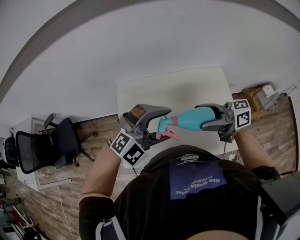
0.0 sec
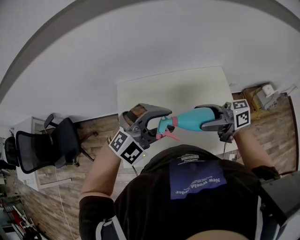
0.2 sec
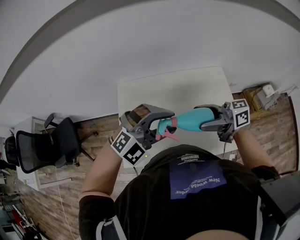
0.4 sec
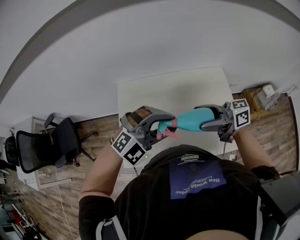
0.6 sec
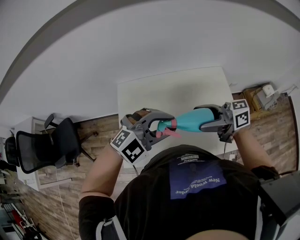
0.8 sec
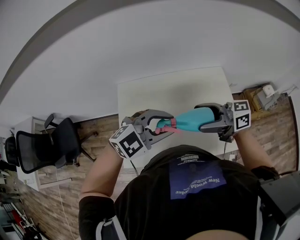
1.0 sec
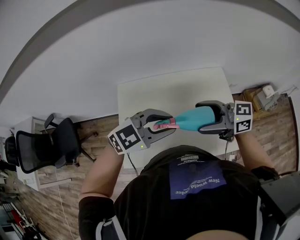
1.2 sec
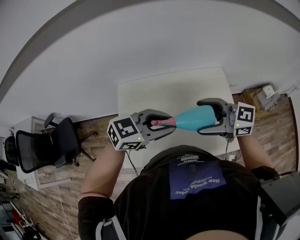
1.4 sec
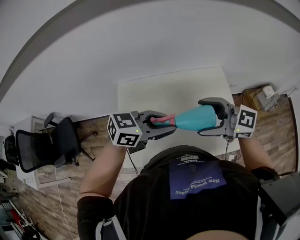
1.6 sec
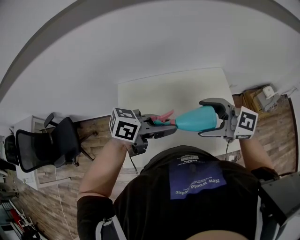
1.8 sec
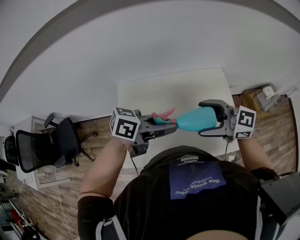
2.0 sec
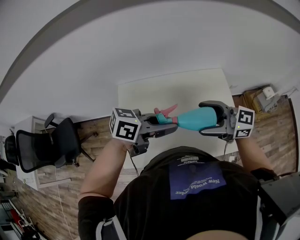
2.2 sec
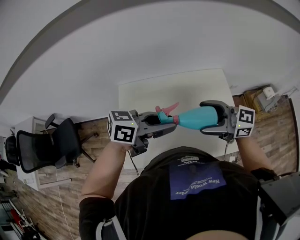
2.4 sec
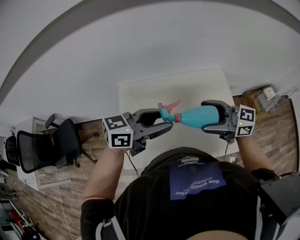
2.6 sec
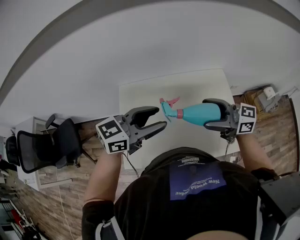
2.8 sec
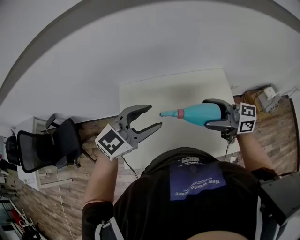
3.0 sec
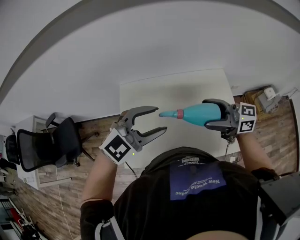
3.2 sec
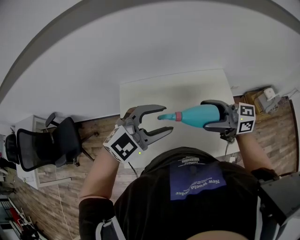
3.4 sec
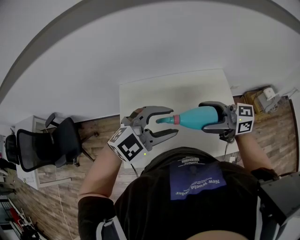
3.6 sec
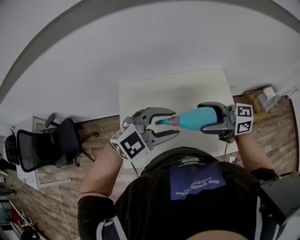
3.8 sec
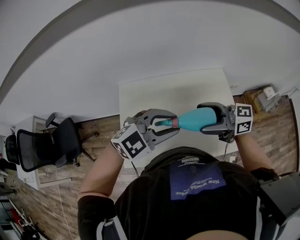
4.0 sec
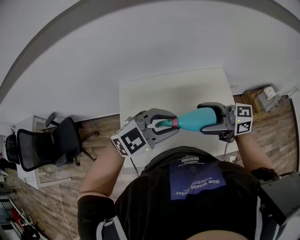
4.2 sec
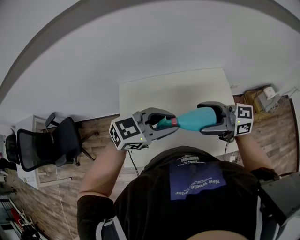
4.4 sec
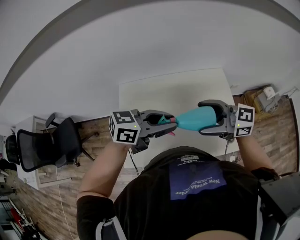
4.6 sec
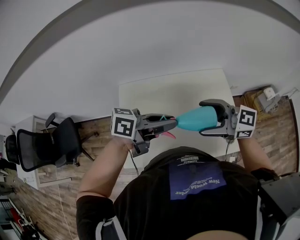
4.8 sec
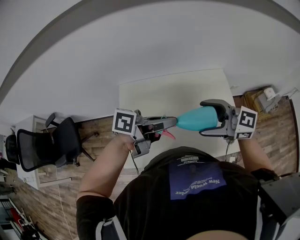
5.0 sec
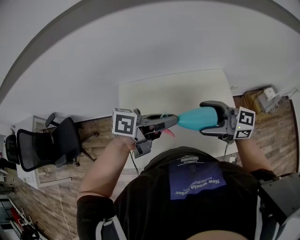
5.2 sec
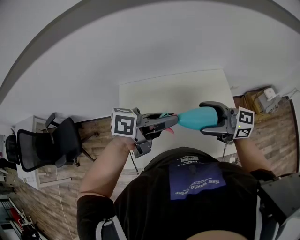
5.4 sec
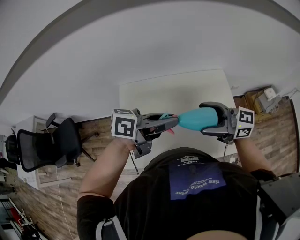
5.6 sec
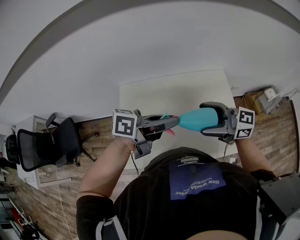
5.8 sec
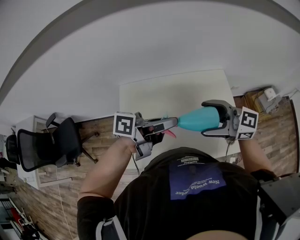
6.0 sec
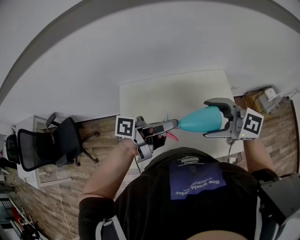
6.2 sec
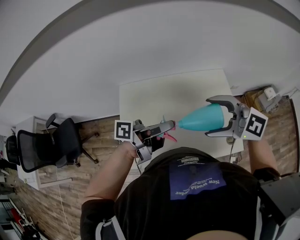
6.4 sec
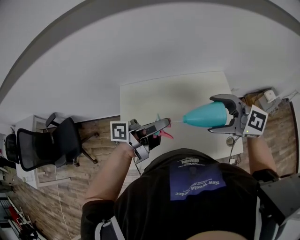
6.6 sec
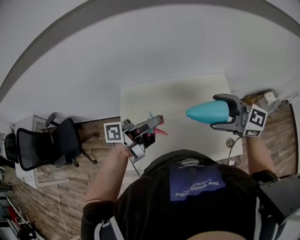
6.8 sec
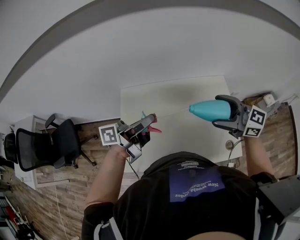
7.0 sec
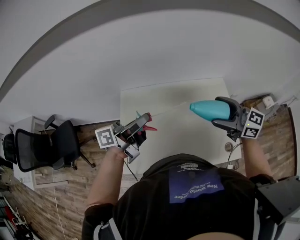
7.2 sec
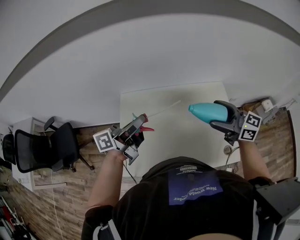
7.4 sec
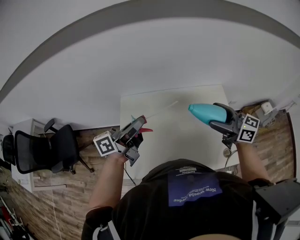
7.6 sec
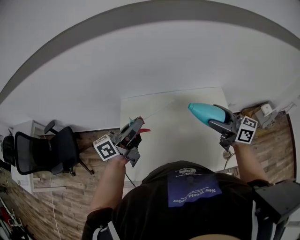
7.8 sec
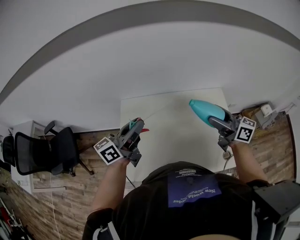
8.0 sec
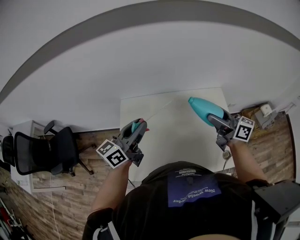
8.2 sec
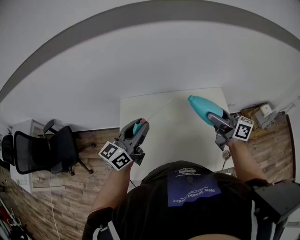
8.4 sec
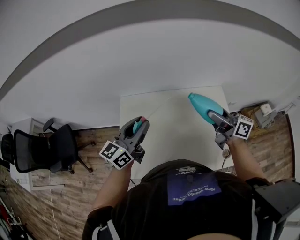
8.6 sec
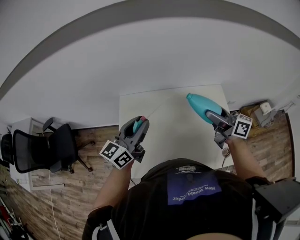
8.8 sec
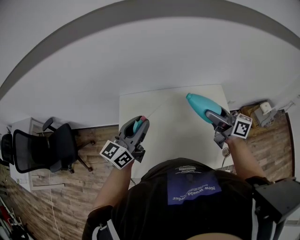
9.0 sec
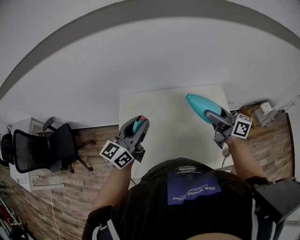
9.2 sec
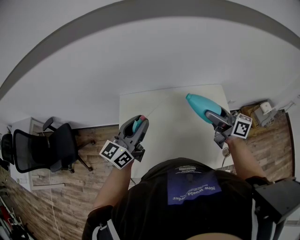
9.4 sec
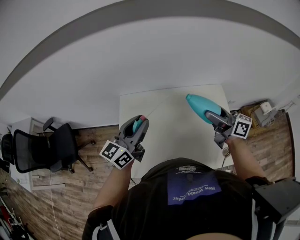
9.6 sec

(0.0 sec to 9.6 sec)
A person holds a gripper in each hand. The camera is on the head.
0.0 sec - 1.6 sec: The left gripper rotates around the line of its fingers by roughly 70 degrees, counterclockwise from behind, and closes its fingers; the right gripper turns by about 40 degrees.
1.6 sec - 3.2 sec: The right gripper changes its angle by roughly 20 degrees. Meanwhile the left gripper ends up some 5 cm from where it was, and twists about 40 degrees clockwise, seen from behind.
3.2 sec - 4.8 sec: The left gripper rotates around the line of its fingers by roughly 70 degrees, counterclockwise from behind.
4.8 sec - 6.4 sec: The right gripper swivels about 20 degrees. The left gripper changes its angle by approximately 30 degrees.
6.4 sec - 8.0 sec: The left gripper ends up some 10 cm from where it was, and rolls clockwise, seen from behind, by about 40 degrees, while the right gripper ends up approximately 10 cm from where it was, and twists about 40 degrees clockwise, seen from behind.
8.0 sec - 9.6 sec: The left gripper turns by about 20 degrees.

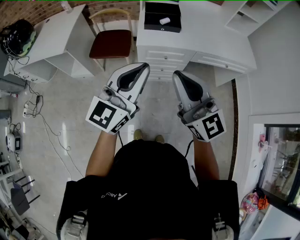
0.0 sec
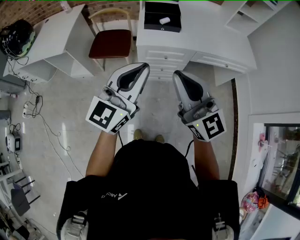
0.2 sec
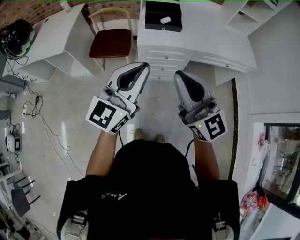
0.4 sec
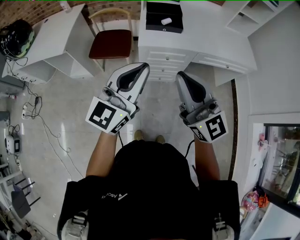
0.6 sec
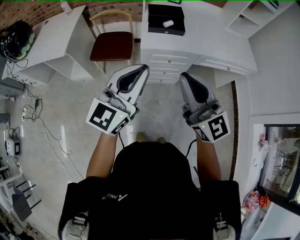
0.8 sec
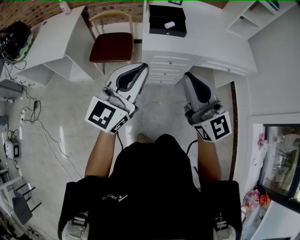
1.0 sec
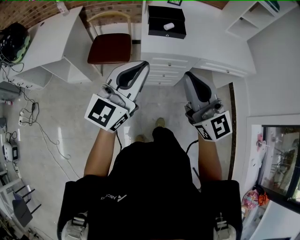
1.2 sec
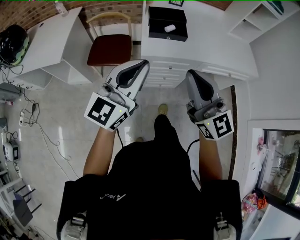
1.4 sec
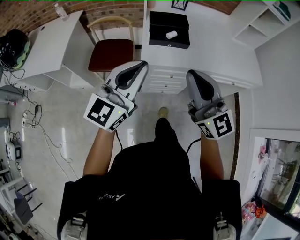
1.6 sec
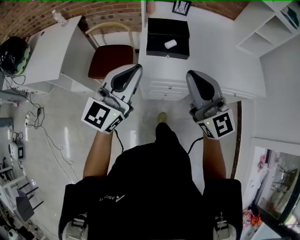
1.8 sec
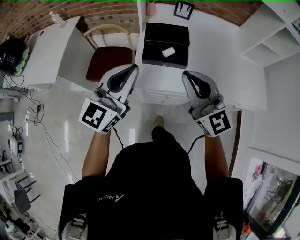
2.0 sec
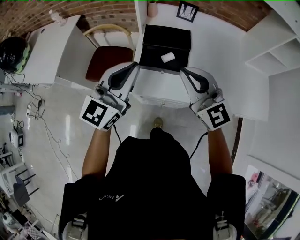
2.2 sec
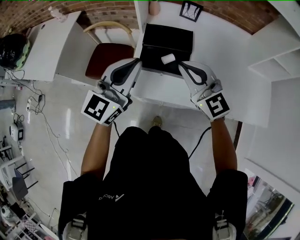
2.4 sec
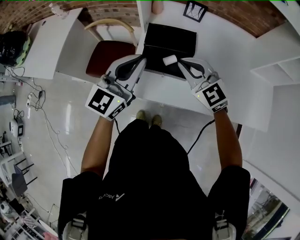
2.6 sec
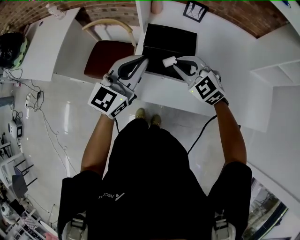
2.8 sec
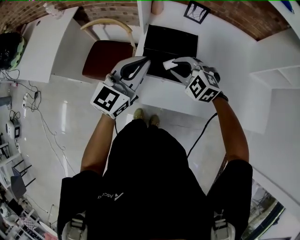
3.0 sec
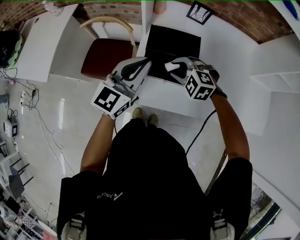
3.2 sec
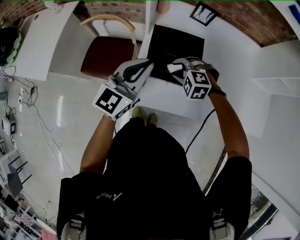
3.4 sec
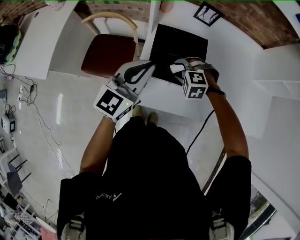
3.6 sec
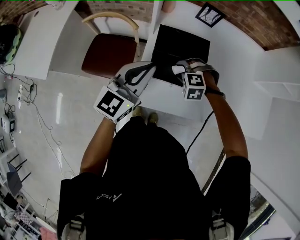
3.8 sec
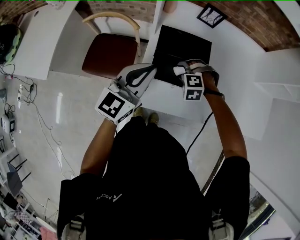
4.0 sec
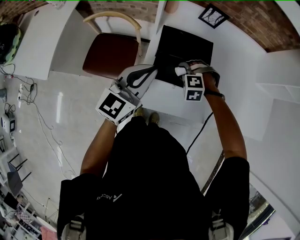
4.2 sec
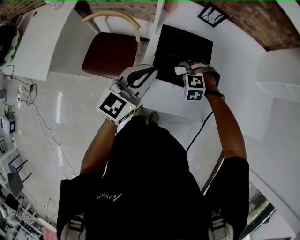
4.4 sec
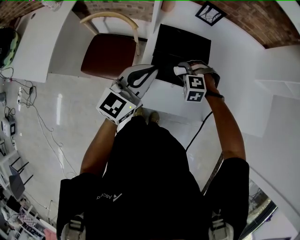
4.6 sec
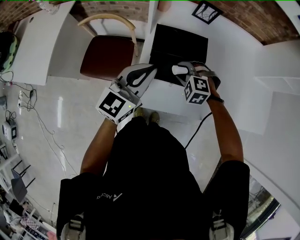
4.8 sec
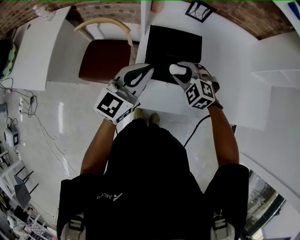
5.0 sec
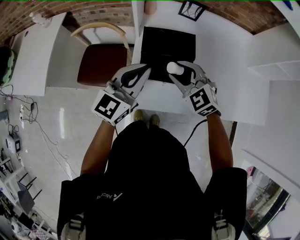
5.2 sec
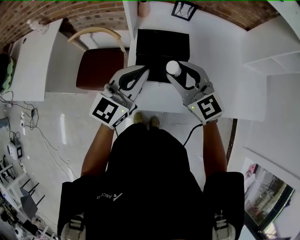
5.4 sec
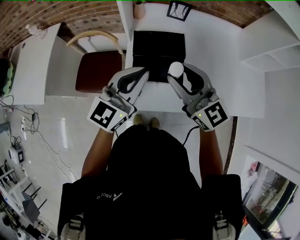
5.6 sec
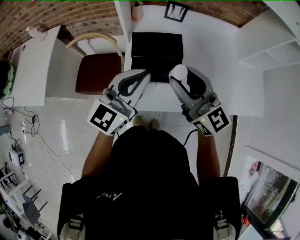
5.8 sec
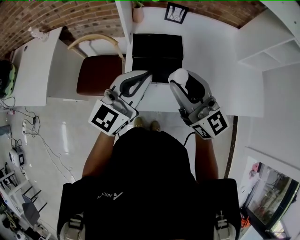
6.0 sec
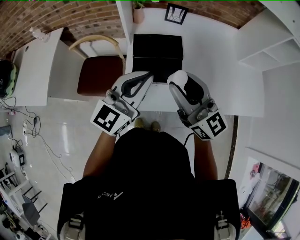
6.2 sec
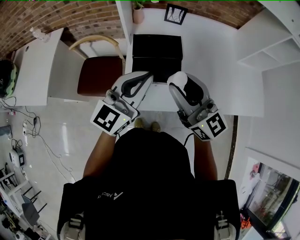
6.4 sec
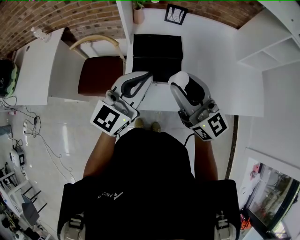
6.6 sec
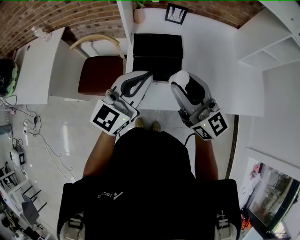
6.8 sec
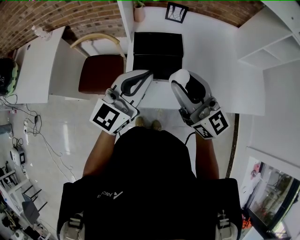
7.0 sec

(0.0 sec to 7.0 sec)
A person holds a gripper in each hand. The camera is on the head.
0.0 sec - 1.4 sec: The right gripper shifts about 10 cm forward, while the left gripper moves forward and to the left, approximately 10 cm.
1.4 sec - 2.8 sec: The right gripper heads forward and downward, covering some 50 cm, and tilts its fingers approximately 40 degrees downward; the left gripper shifts some 35 cm forward.
2.8 sec - 4.2 sec: The left gripper shifts some 5 cm downward, while the right gripper is displaced downward by roughly 20 cm, tips its fingers downward by roughly 40 degrees, and opens.
4.2 sec - 5.6 sec: The left gripper is displaced upward and to the right by approximately 10 cm, while the right gripper moves upward, roughly 30 cm, and angles its fingers upward, by approximately 70 degrees.
5.6 sec - 7.0 sec: The right gripper goes approximately 5 cm backward; the left gripper changes place by some 5 cm.

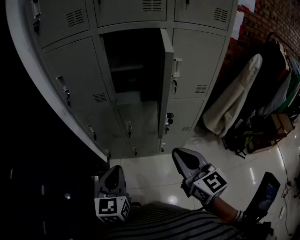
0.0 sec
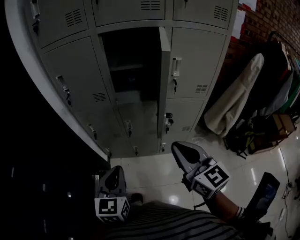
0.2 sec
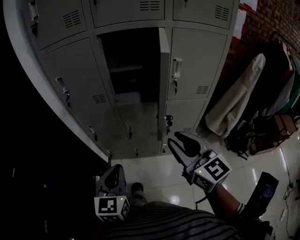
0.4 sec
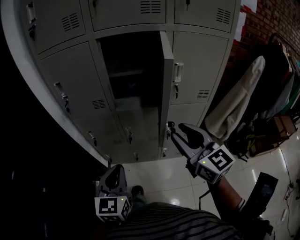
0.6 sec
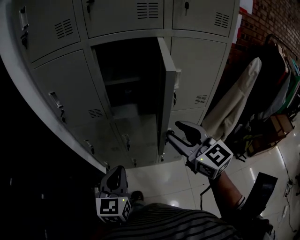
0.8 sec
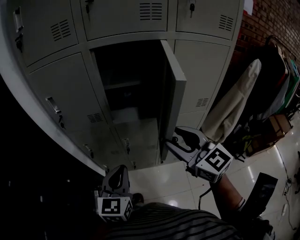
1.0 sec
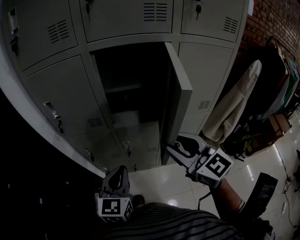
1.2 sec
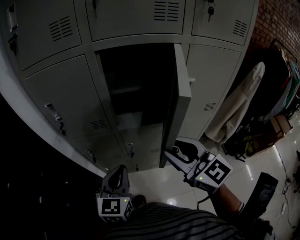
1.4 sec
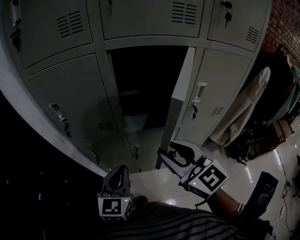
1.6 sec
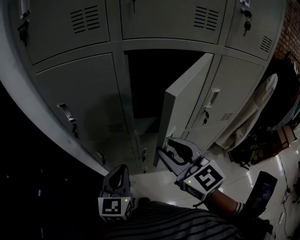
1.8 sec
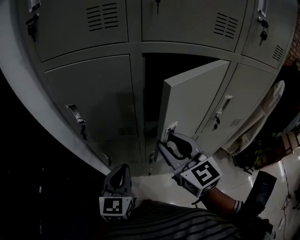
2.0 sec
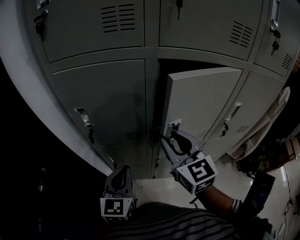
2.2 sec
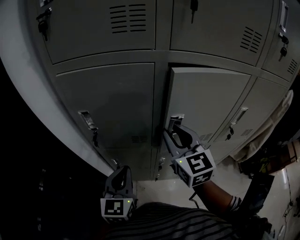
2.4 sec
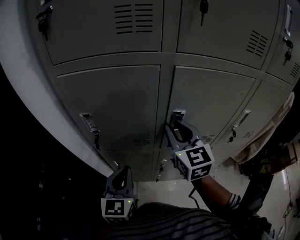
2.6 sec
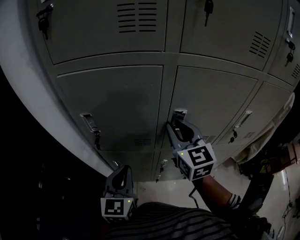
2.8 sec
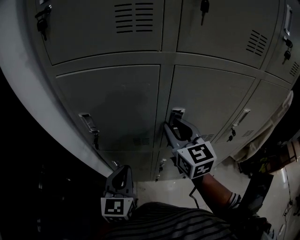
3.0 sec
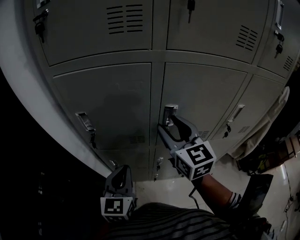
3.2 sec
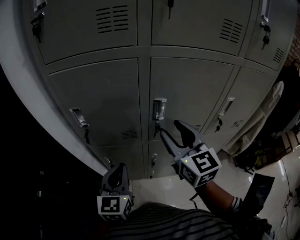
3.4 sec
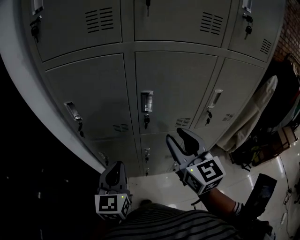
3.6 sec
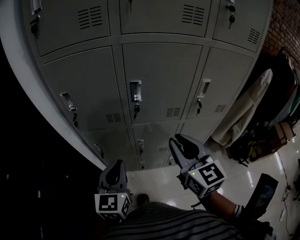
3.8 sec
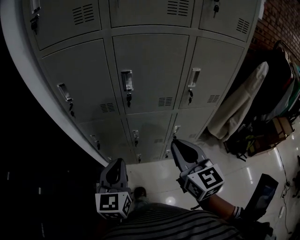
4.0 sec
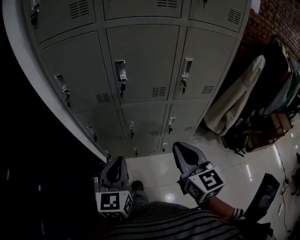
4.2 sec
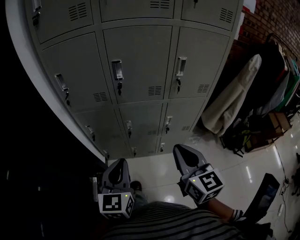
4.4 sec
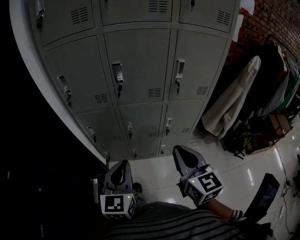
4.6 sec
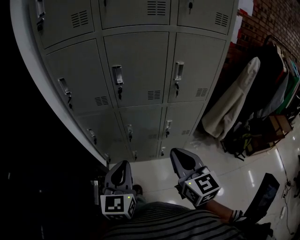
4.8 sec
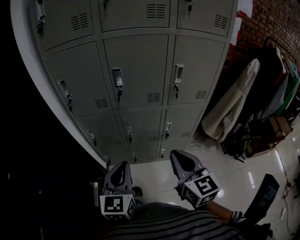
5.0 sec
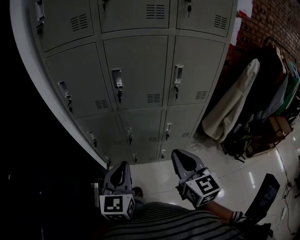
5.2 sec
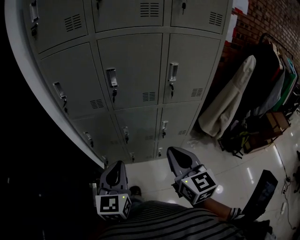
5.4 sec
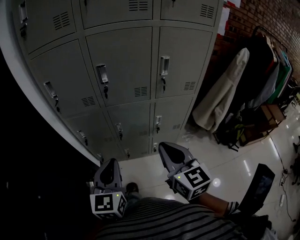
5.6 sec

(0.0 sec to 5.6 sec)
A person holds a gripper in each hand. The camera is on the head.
0.0 sec - 1.4 sec: The grippers both shift forward by roughly 15 cm. The right gripper opens.
1.4 sec - 2.8 sec: The right gripper travels forward and to the left by approximately 25 cm. The left gripper travels to the left and forward by some 20 cm.
2.8 sec - 4.2 sec: The grippers both shift backward and to the right by roughly 30 cm. The right gripper opens, then closes again.
4.2 sec - 5.6 sec: The grippers stay close to where they were, moving slightly.

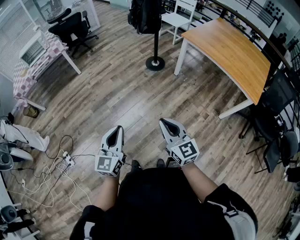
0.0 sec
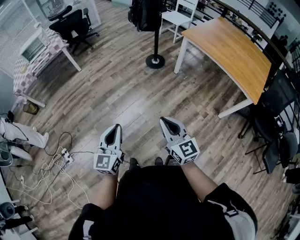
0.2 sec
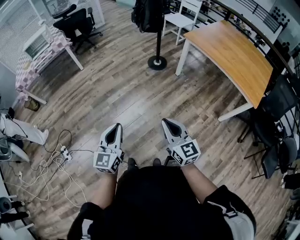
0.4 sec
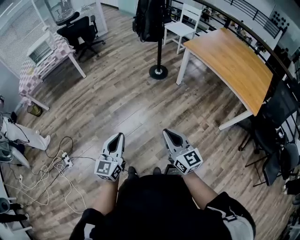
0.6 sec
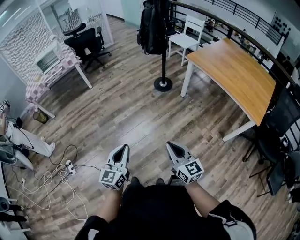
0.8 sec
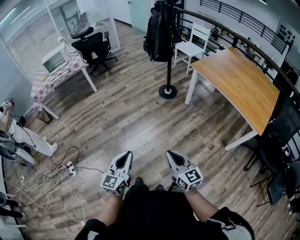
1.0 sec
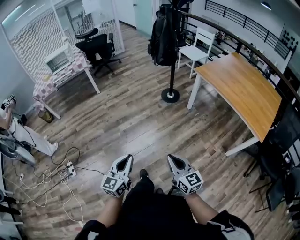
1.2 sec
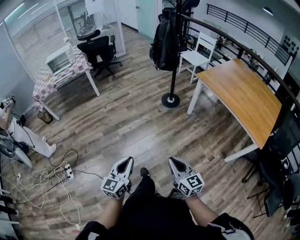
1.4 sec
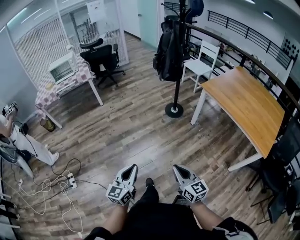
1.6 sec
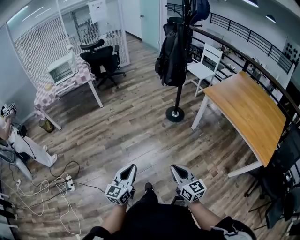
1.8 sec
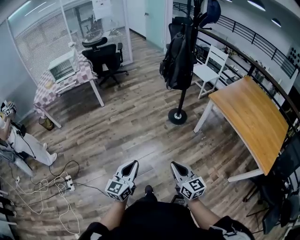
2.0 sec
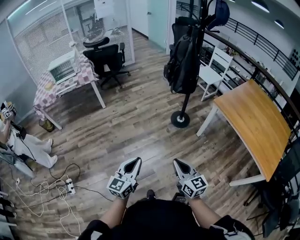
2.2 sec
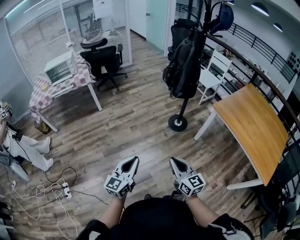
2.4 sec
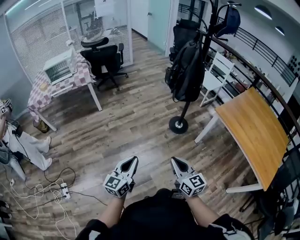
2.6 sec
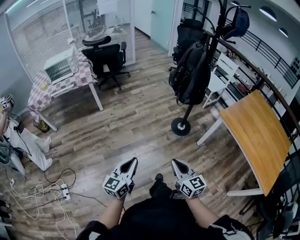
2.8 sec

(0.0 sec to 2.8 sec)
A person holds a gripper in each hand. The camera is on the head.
0.0 sec - 1.4 sec: The right gripper shifts by roughly 5 cm.
1.4 sec - 2.8 sec: The two grippers go about 35 cm forward.
